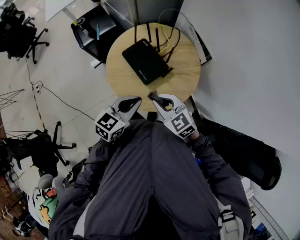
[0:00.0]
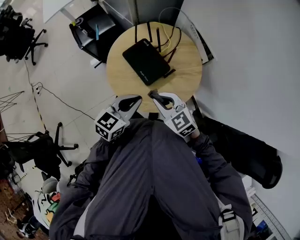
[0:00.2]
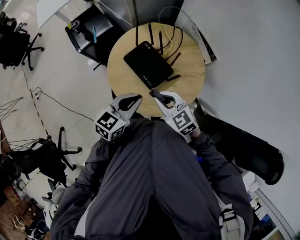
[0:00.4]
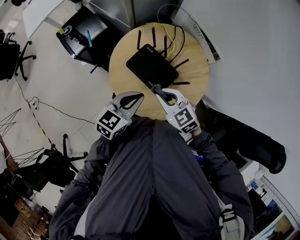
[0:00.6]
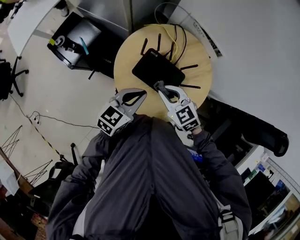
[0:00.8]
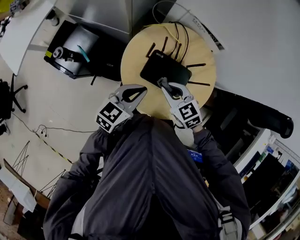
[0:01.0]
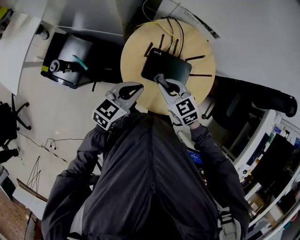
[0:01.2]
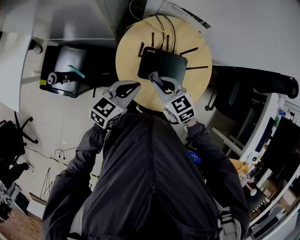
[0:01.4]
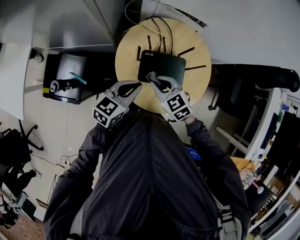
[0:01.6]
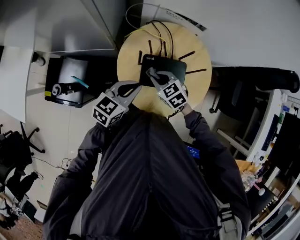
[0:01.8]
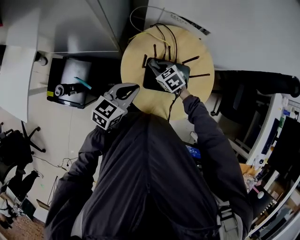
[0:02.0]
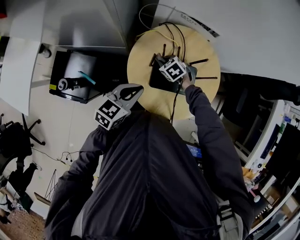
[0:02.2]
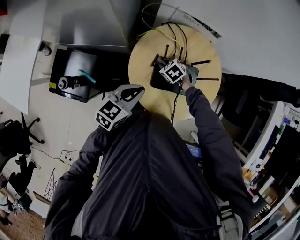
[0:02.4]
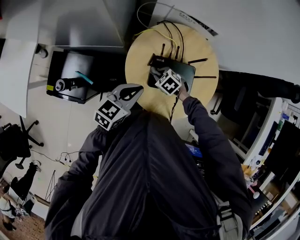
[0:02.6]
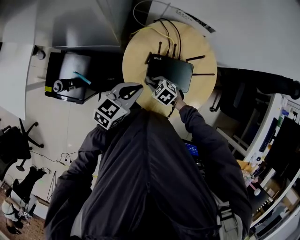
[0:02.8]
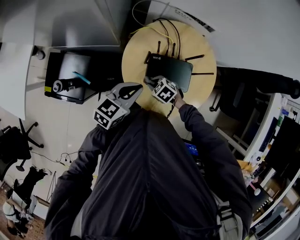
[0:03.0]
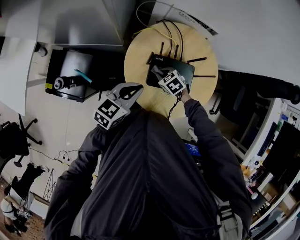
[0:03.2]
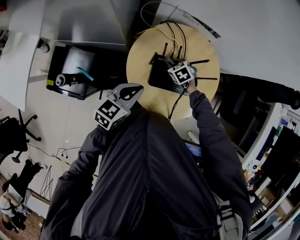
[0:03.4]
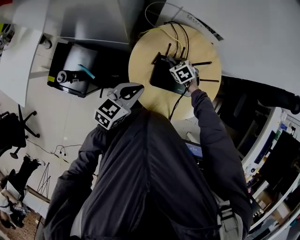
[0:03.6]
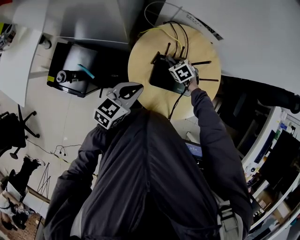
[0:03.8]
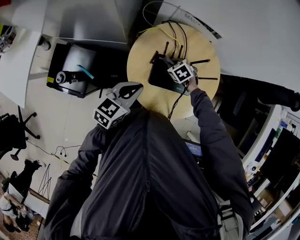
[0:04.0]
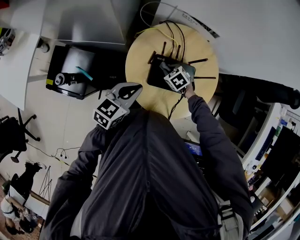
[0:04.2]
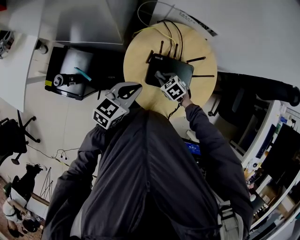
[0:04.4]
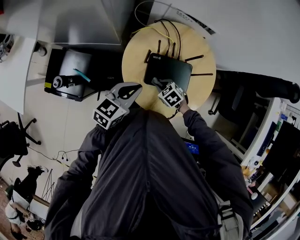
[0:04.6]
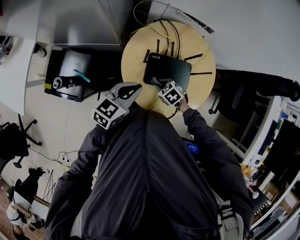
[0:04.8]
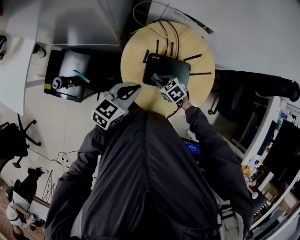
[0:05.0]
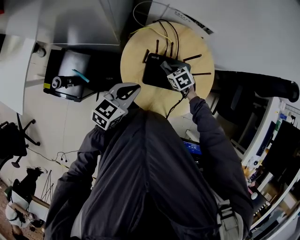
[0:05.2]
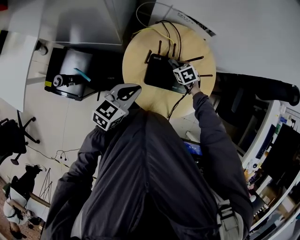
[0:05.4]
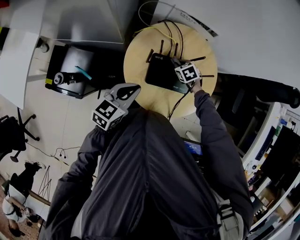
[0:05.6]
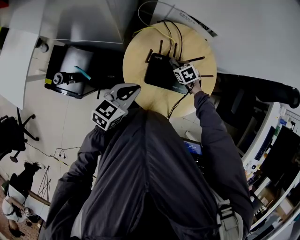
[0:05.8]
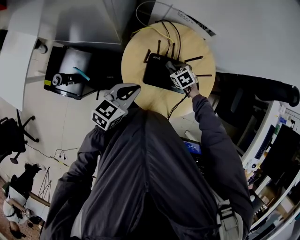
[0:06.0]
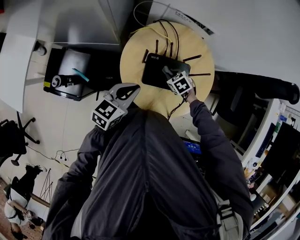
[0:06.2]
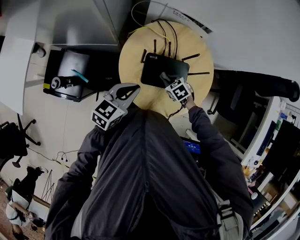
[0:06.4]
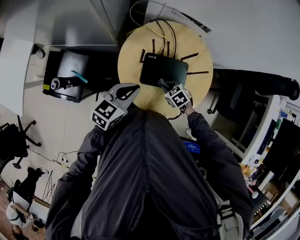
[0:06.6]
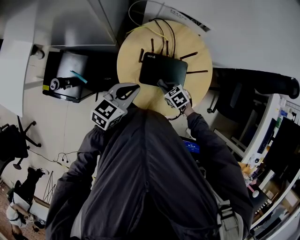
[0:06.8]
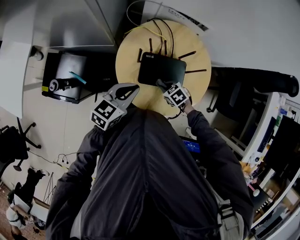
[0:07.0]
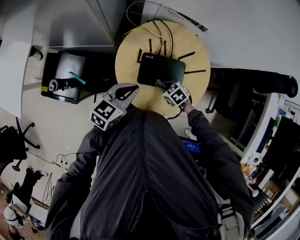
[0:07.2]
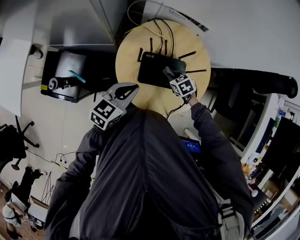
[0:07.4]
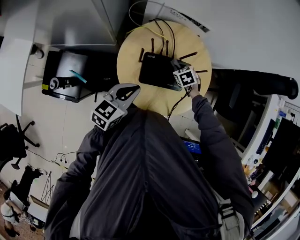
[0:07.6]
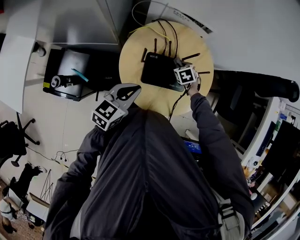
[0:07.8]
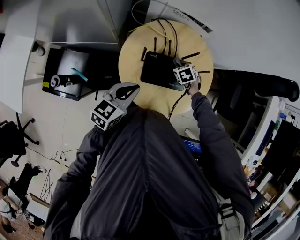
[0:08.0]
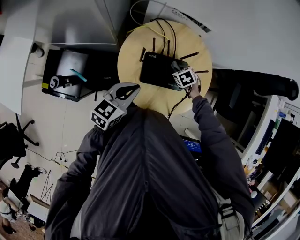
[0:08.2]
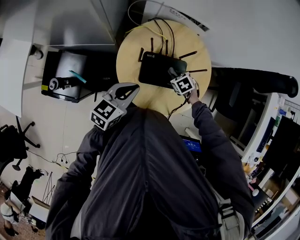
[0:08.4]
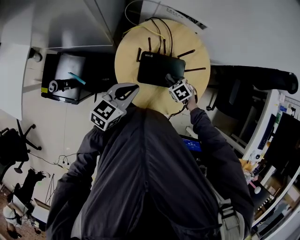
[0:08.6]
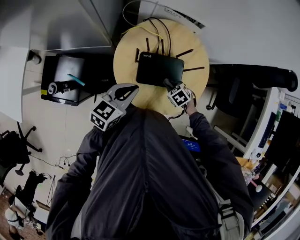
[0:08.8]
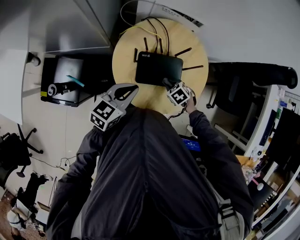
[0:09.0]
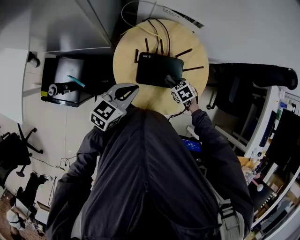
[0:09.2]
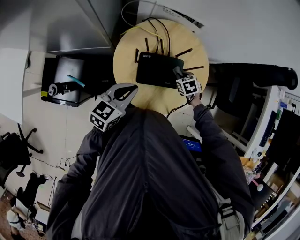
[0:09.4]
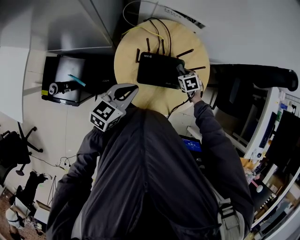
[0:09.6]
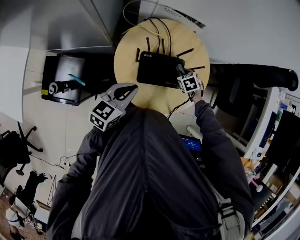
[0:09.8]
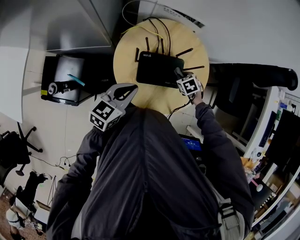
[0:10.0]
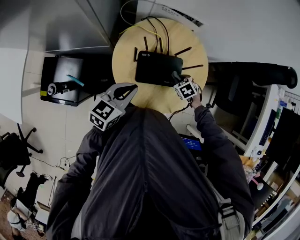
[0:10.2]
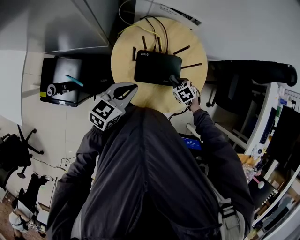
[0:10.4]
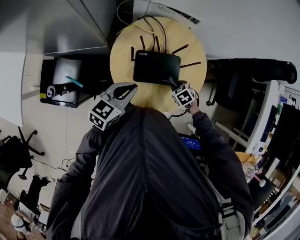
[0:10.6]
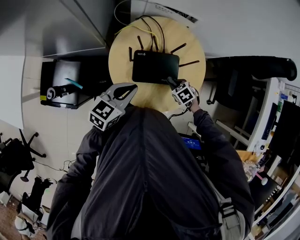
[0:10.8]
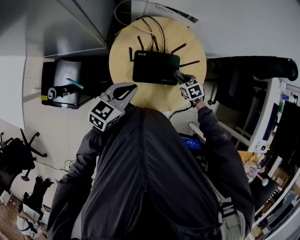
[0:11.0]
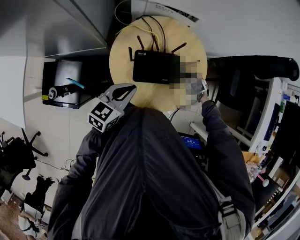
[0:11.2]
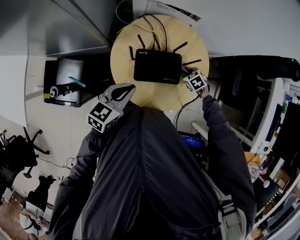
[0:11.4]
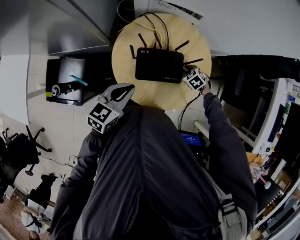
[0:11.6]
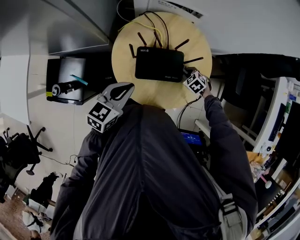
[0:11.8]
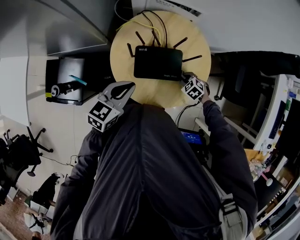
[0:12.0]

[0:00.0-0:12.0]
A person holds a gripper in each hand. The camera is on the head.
0:00.0 to 0:01.6: The left gripper changes place by about 30 cm, and turns by some 50 degrees. The right gripper ends up about 30 cm from where it was, and turns by some 50 degrees.
0:01.6 to 0:03.0: The right gripper goes roughly 15 cm downward, and turns by about 30 degrees.
0:04.4 to 0:06.0: The right gripper is displaced to the right and forward by approximately 10 cm.
0:07.6 to 0:09.0: The right gripper moves roughly 15 cm.
0:10.4 to 0:12.0: The right gripper travels forward and back again, roughly 5 cm each way.

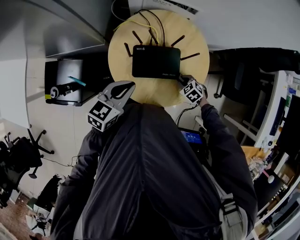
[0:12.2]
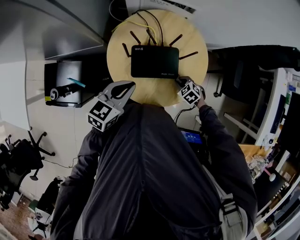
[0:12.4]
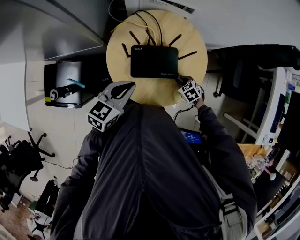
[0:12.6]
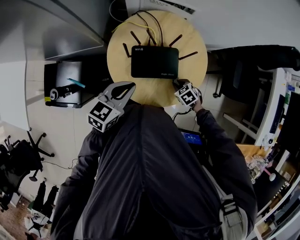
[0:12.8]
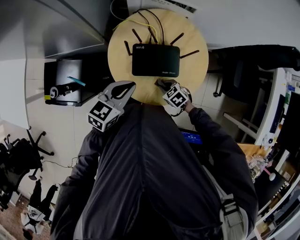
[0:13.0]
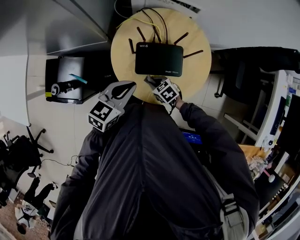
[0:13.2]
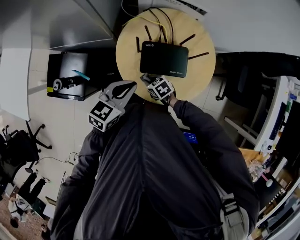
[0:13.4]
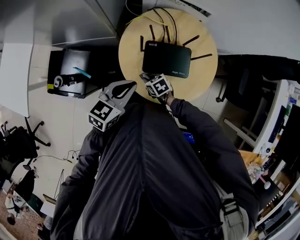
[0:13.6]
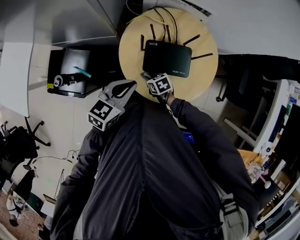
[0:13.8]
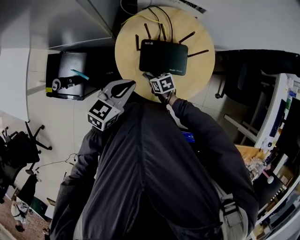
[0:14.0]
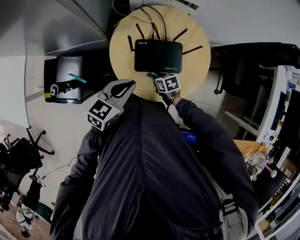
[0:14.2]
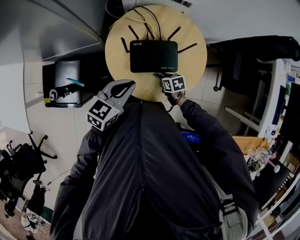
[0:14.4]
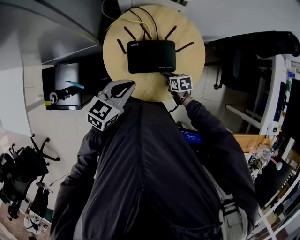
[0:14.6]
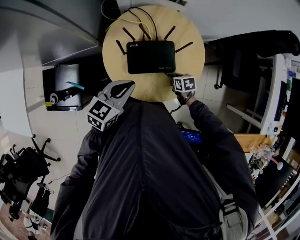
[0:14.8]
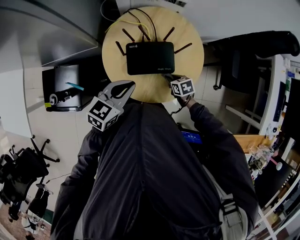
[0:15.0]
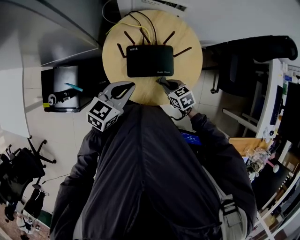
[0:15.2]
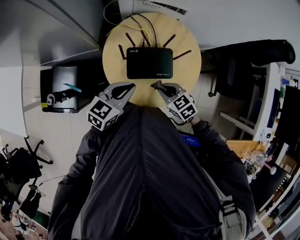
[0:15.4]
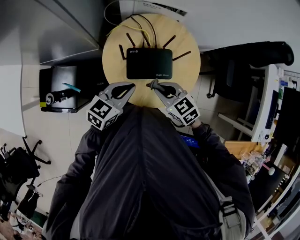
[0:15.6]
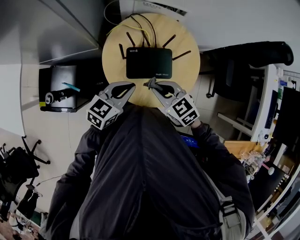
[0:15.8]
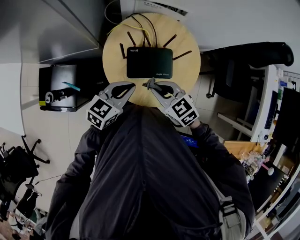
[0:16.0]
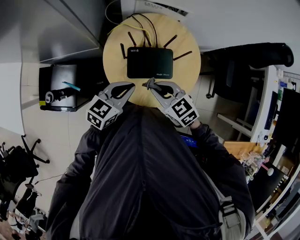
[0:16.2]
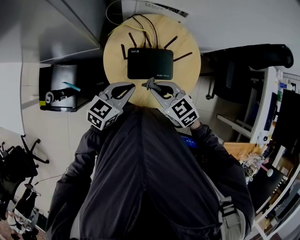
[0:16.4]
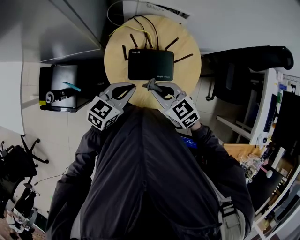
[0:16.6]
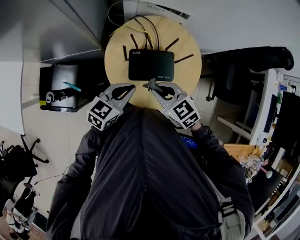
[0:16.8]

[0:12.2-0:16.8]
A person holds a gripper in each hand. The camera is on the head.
0:12.2 to 0:13.8: The right gripper heads to the left, covering approximately 20 cm, and rotates about 30 degrees.
0:13.8 to 0:15.2: The right gripper shifts approximately 15 cm to the right and upward; the left gripper heads to the right, covering roughly 5 cm.
0:15.2 to 0:16.8: The right gripper is displaced upward and to the left by approximately 20 cm, and changes its angle by roughly 20 degrees.

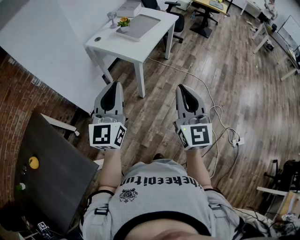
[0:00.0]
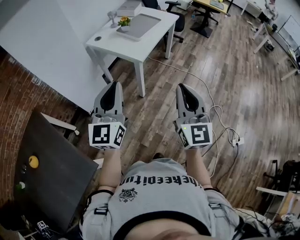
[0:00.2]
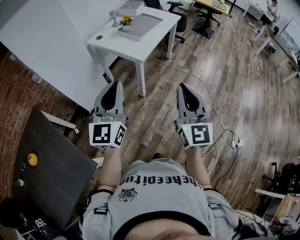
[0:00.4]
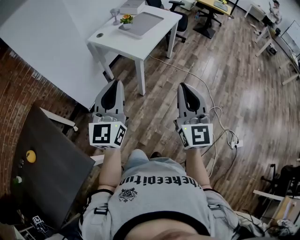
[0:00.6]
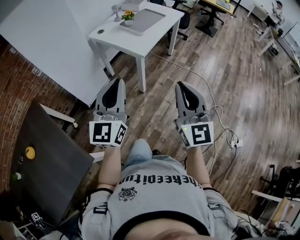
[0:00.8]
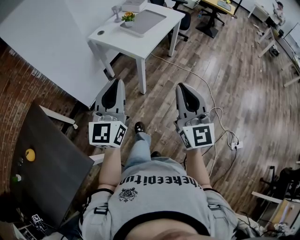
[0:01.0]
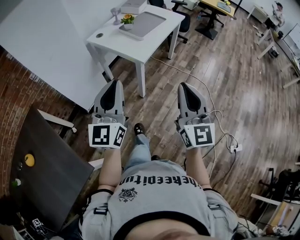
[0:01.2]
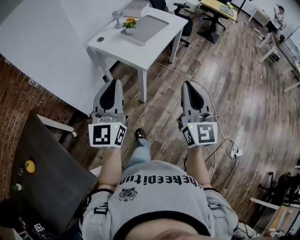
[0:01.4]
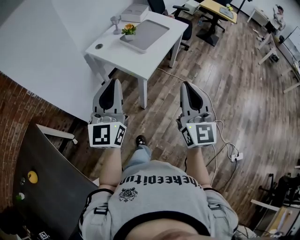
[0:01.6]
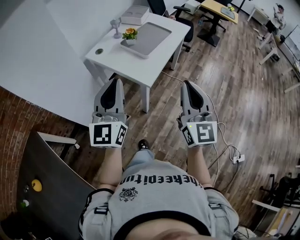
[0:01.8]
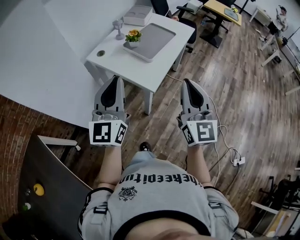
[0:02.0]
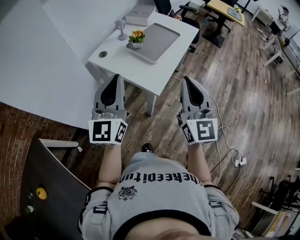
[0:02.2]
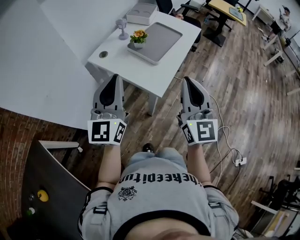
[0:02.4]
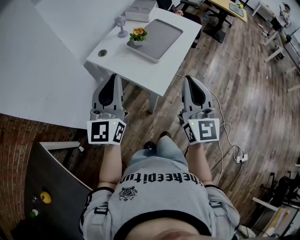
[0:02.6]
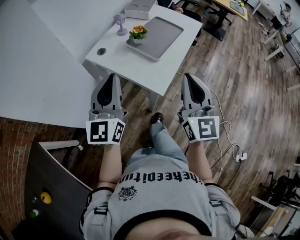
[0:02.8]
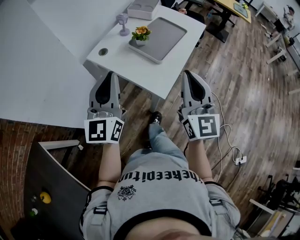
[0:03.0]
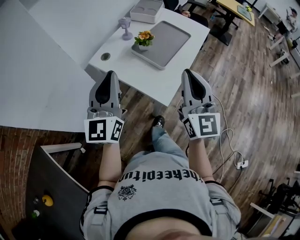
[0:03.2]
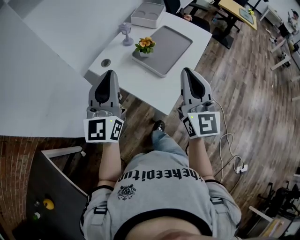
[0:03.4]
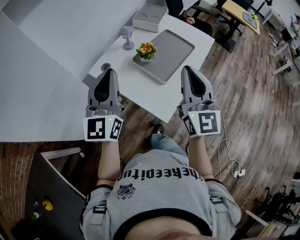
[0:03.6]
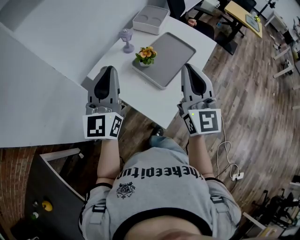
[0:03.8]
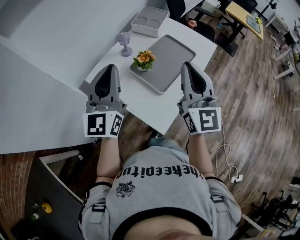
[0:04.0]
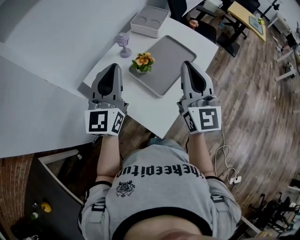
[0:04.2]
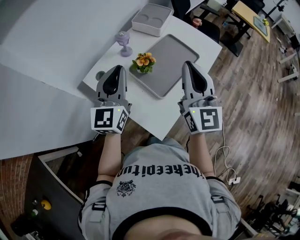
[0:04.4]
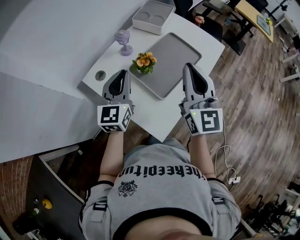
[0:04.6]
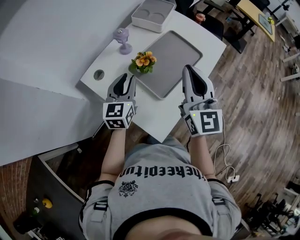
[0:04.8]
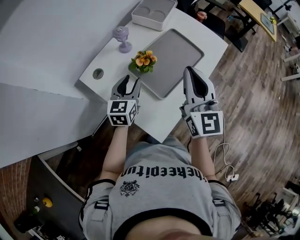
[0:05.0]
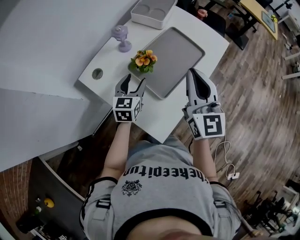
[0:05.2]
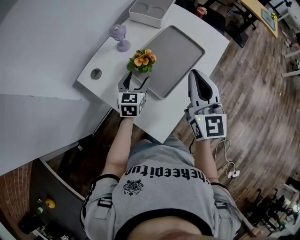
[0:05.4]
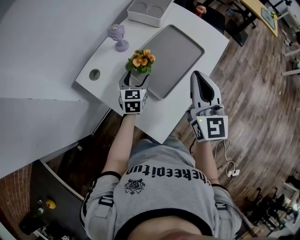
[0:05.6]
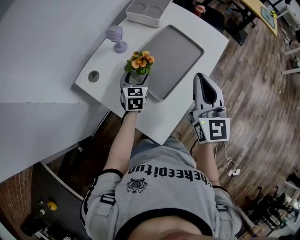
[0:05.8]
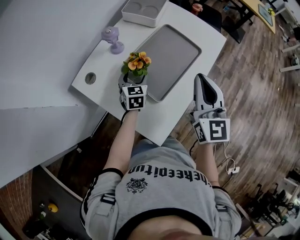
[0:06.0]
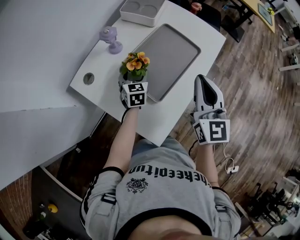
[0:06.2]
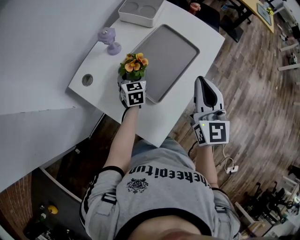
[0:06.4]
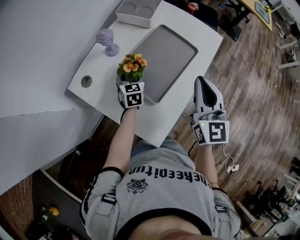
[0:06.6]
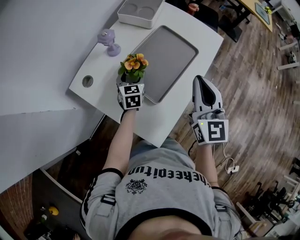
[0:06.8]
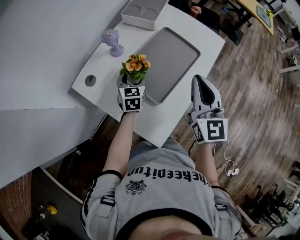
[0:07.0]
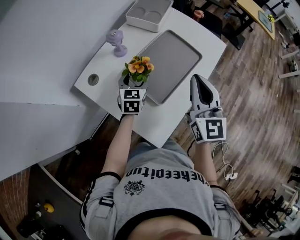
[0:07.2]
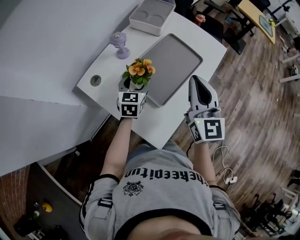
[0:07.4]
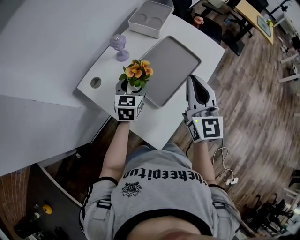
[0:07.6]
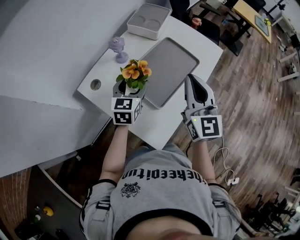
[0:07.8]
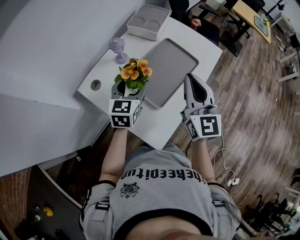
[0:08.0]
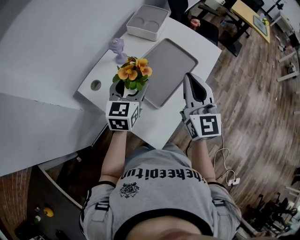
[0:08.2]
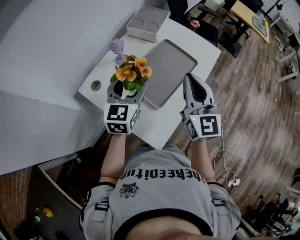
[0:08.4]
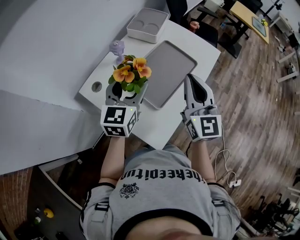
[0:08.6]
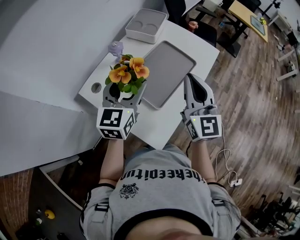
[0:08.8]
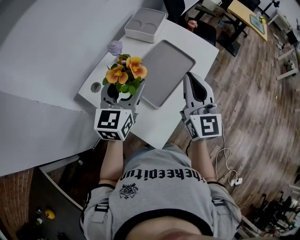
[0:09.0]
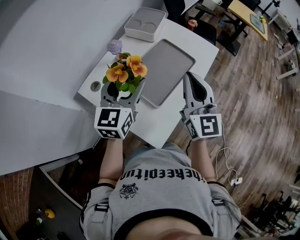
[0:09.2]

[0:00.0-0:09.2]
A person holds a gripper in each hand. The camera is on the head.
0:00.0 to 0:01.6: Both grippers travel together forward, some 15 cm.
0:01.6 to 0:03.0: Both grippers travel together forward and to the left, approximately 25 cm.
0:03.0 to 0:04.6: Both grippers move forward, about 30 cm.
0:04.6 to 0:06.2: The left gripper heads downward and forward, covering about 25 cm, changes its angle by about 30 degrees, and opens its fingers. The right gripper travels downward and to the right by roughly 10 cm.
0:06.2 to 0:07.6: The left gripper heads upward, covering about 10 cm.
0:07.6 to 0:09.2: The left gripper heads upward, covering some 15 cm.
